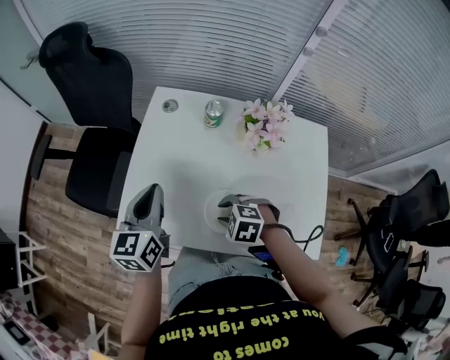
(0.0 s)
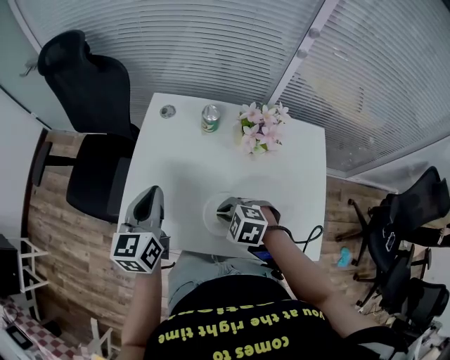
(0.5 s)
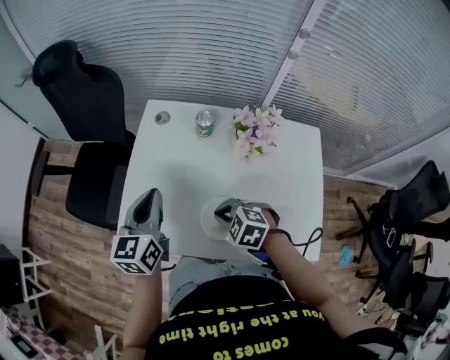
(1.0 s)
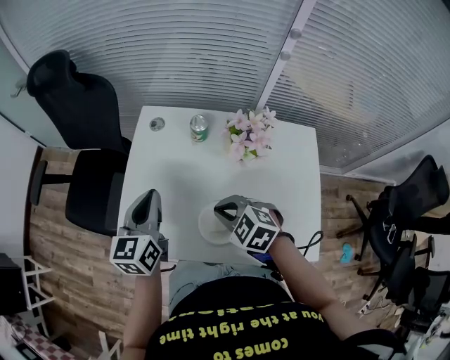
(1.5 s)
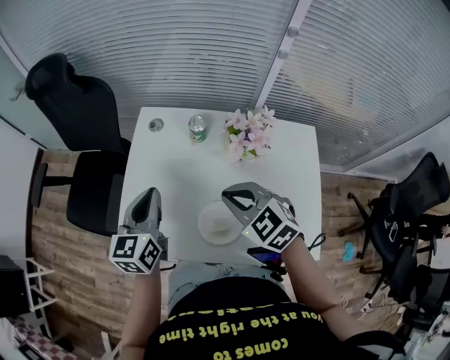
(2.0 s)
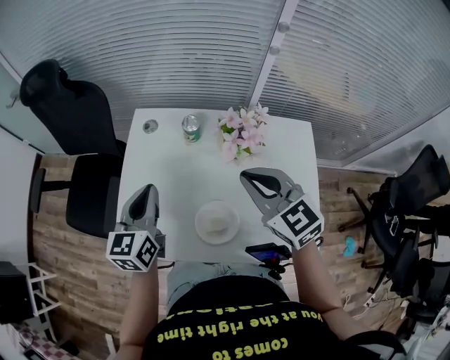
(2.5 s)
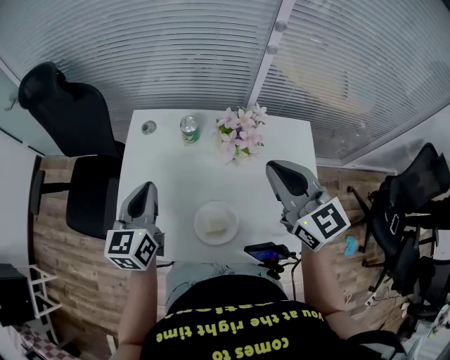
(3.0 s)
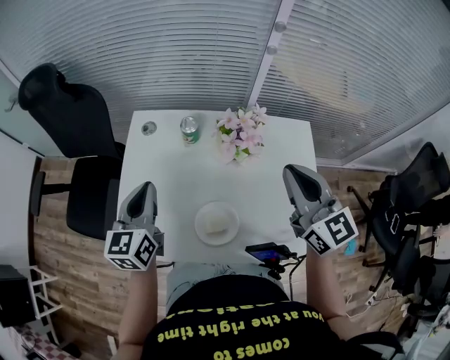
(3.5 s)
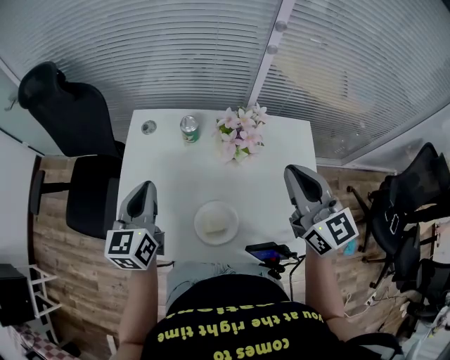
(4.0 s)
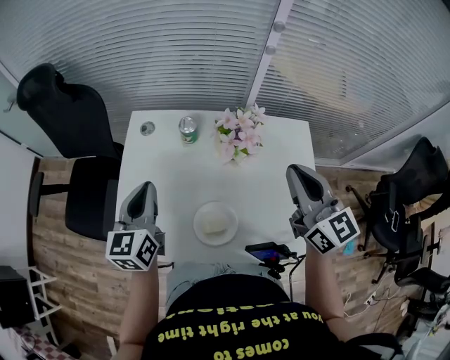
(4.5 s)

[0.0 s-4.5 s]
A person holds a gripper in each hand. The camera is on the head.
0.0 to 2.0 s: The left gripper changes place by about 5 cm, while the right gripper goes some 15 cm upward, changes its angle by about 40 degrees, and closes up.
2.0 to 4.5 s: The right gripper goes some 20 cm to the right and upward, and tips its fingers upward by approximately 40 degrees.

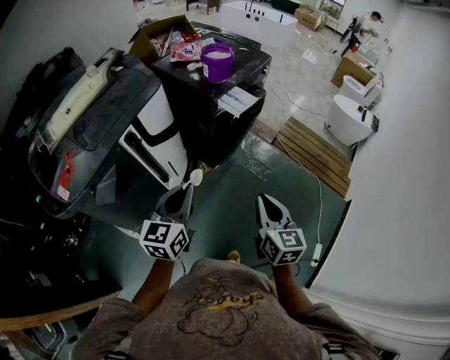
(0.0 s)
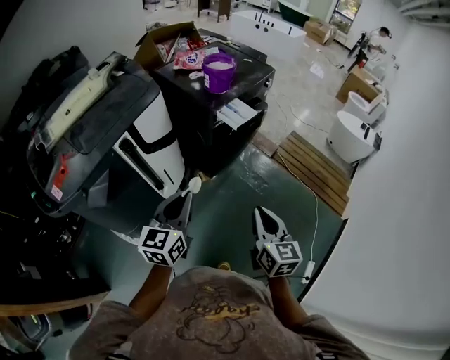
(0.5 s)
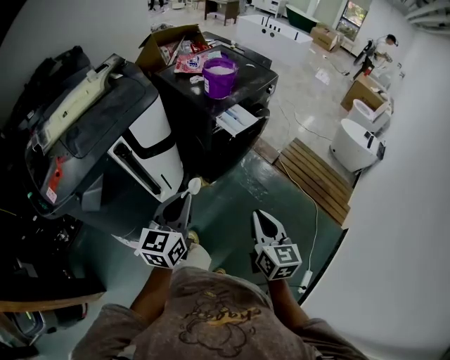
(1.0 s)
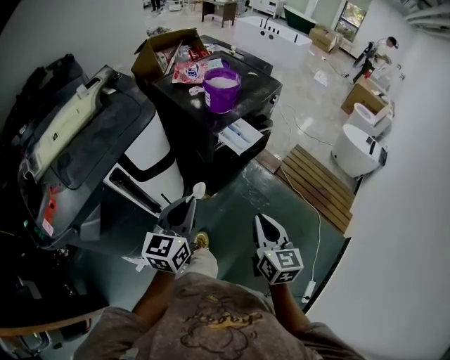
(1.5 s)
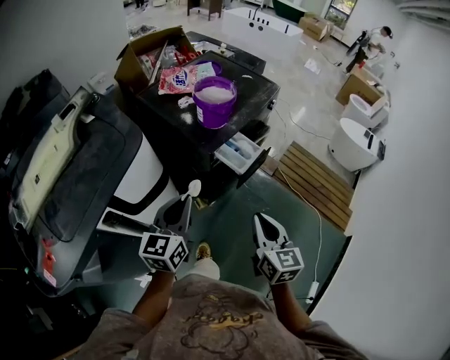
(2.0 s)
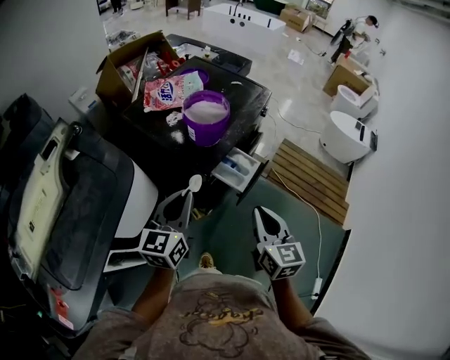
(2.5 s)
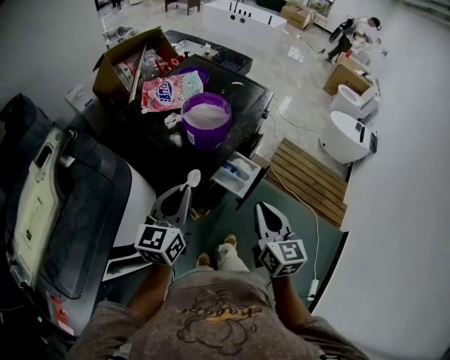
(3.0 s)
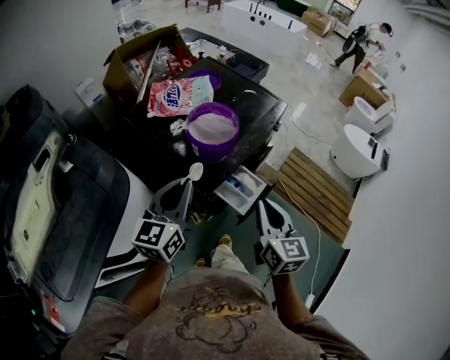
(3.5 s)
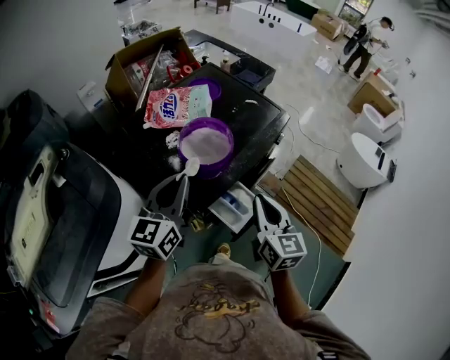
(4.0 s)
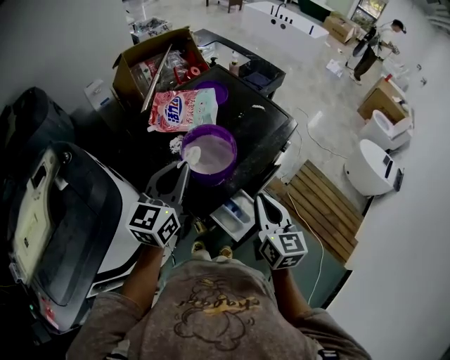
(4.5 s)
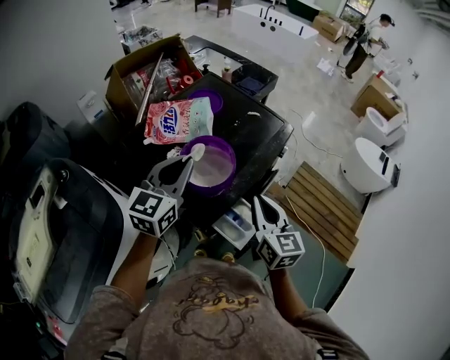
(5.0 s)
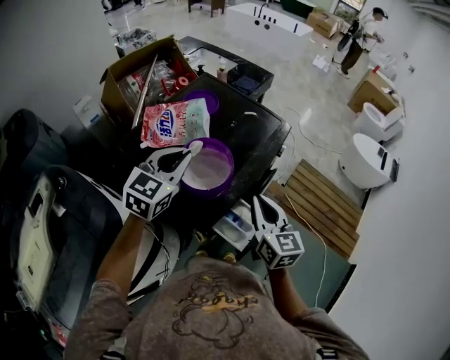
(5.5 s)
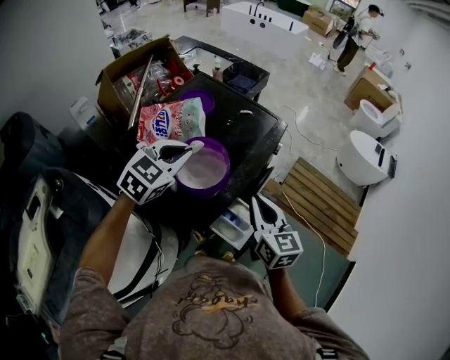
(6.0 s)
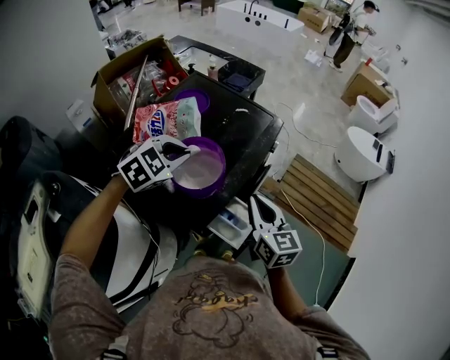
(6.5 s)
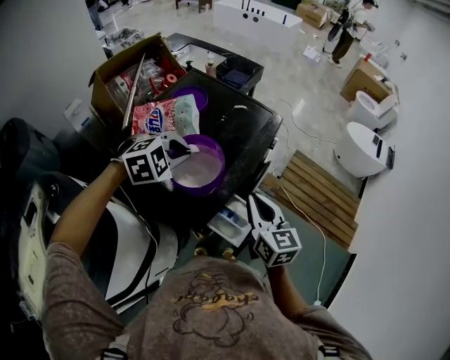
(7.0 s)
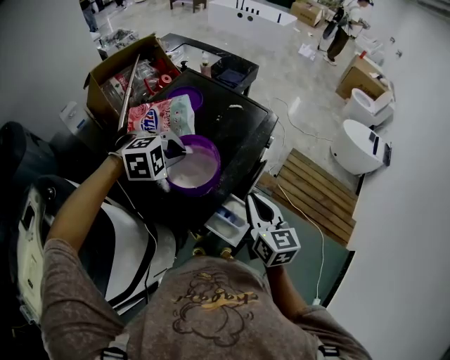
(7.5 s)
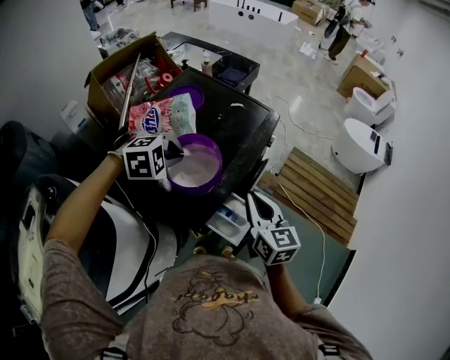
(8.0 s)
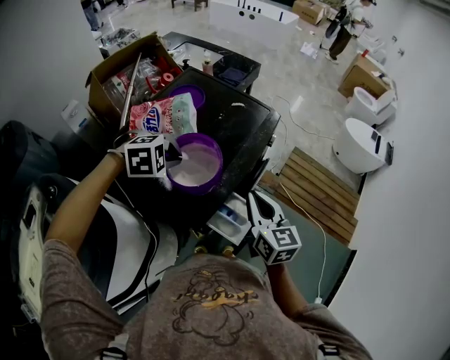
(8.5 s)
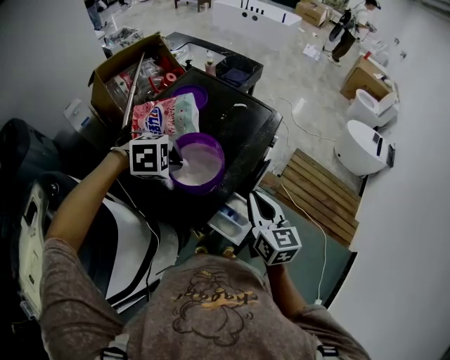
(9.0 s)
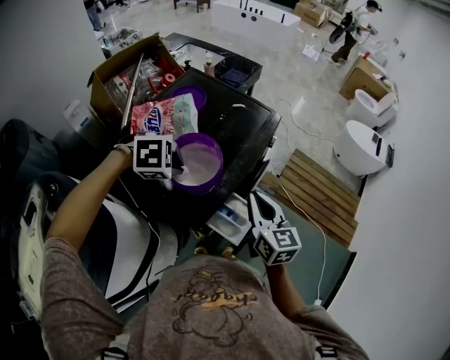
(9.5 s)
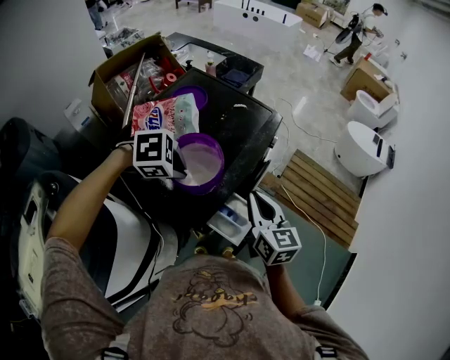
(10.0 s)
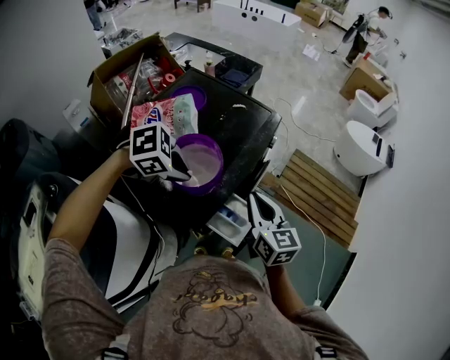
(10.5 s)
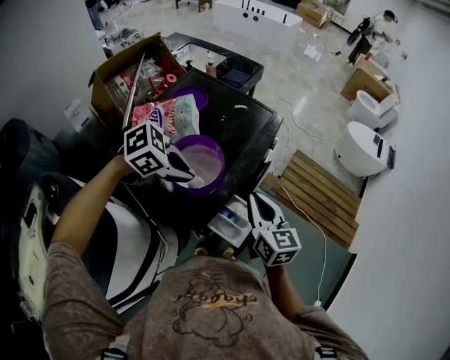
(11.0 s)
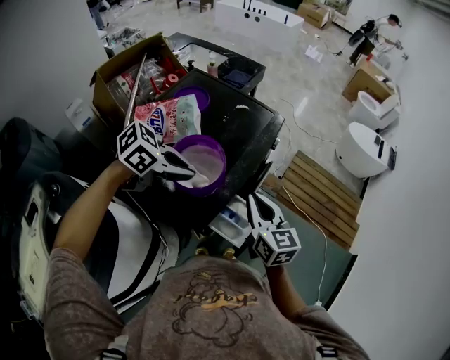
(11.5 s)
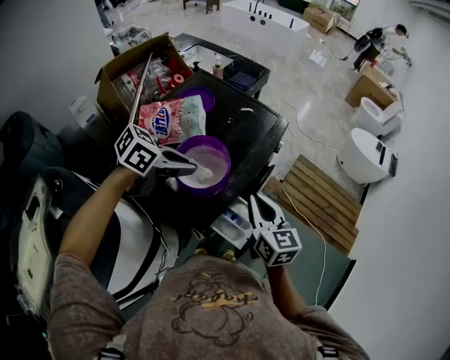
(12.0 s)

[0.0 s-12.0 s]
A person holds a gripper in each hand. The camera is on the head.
0.0 to 2.0 s: The two grippers go roughly 25 cm forward.
2.0 to 4.0 s: The two grippers go roughly 30 cm forward.
4.0 to 6.0 s: The left gripper heads forward, covering approximately 15 cm, and changes its angle by some 50 degrees. The right gripper is displaced forward by approximately 5 cm.
6.0 to 8.0 s: The left gripper heads downward, covering roughly 5 cm, and tilts its fingers approximately 30 degrees downward.
8.0 to 10.0 s: The left gripper shifts by about 5 cm, and swivels approximately 30 degrees.
10.0 to 12.0 s: The left gripper tips its fingers upward by some 40 degrees.

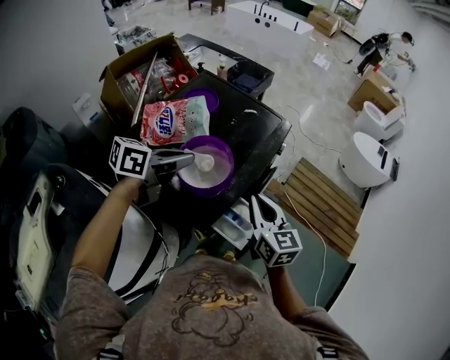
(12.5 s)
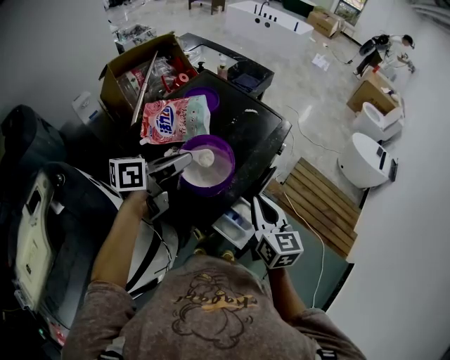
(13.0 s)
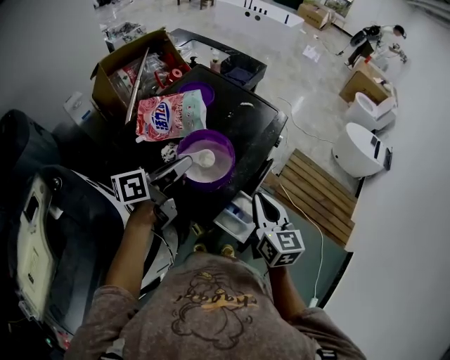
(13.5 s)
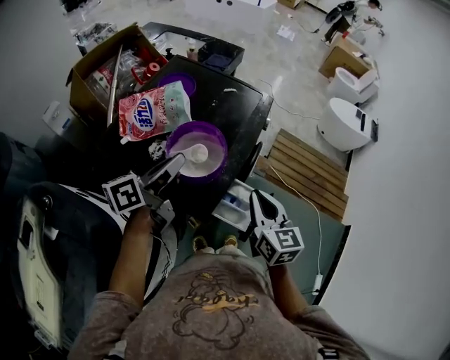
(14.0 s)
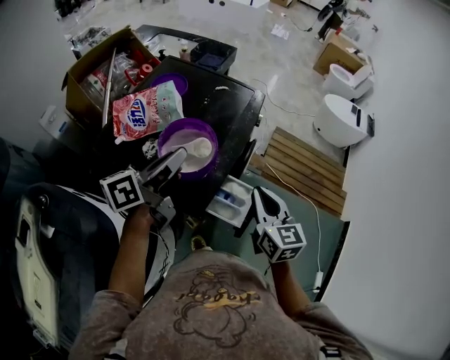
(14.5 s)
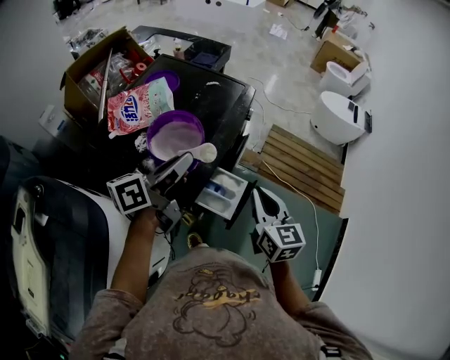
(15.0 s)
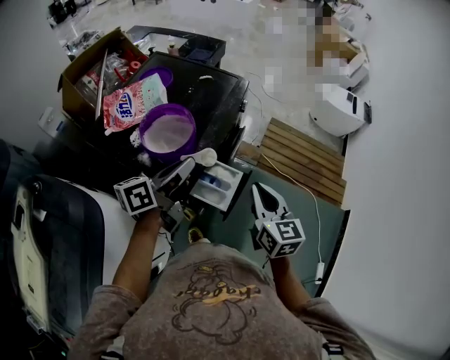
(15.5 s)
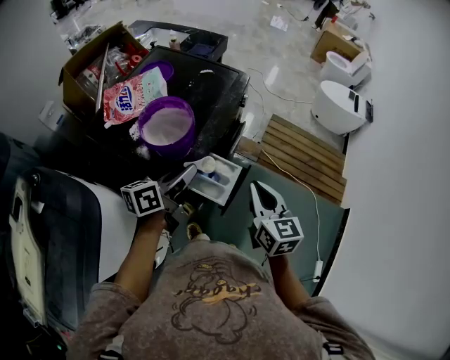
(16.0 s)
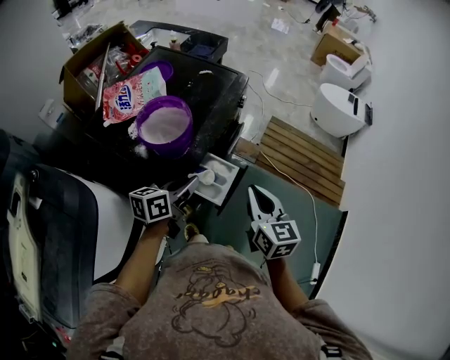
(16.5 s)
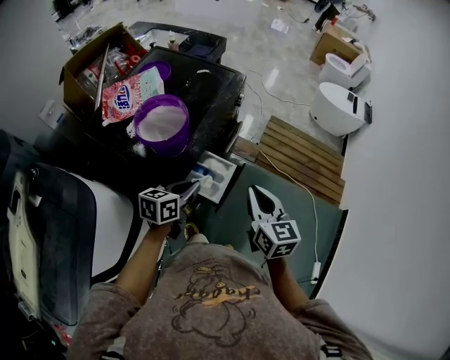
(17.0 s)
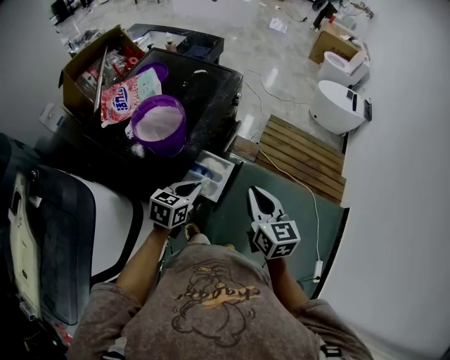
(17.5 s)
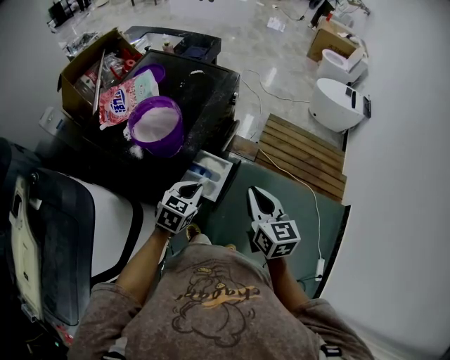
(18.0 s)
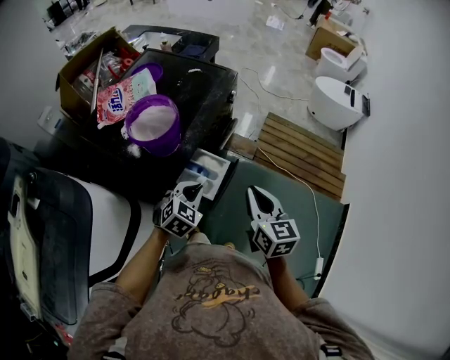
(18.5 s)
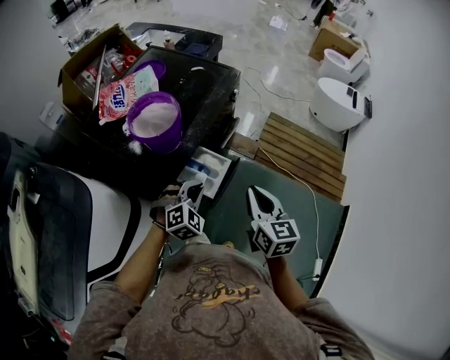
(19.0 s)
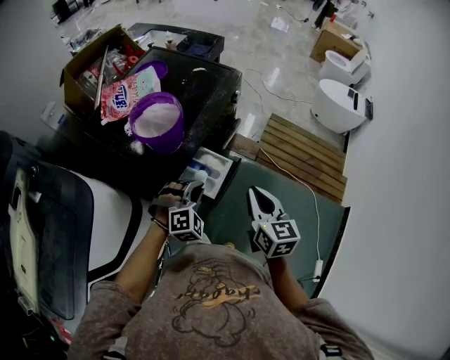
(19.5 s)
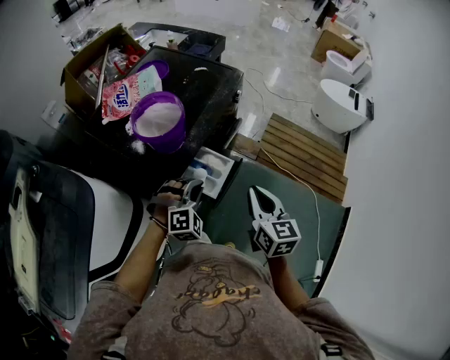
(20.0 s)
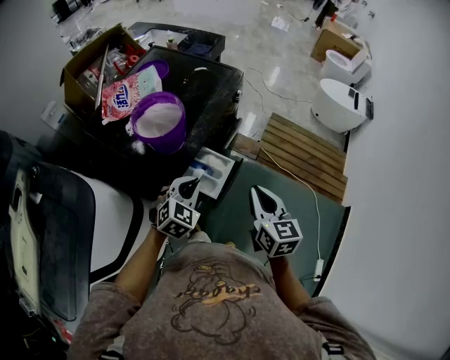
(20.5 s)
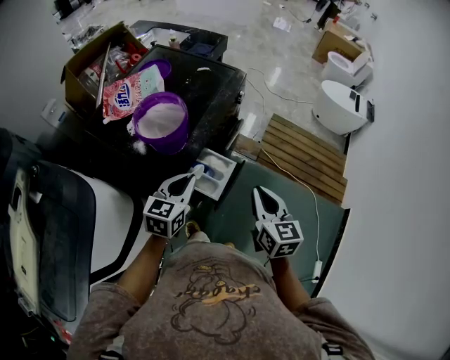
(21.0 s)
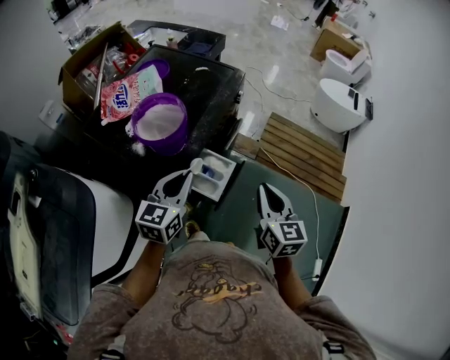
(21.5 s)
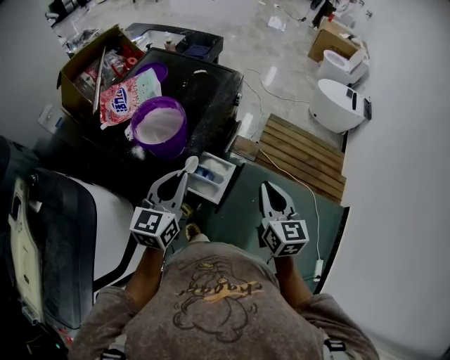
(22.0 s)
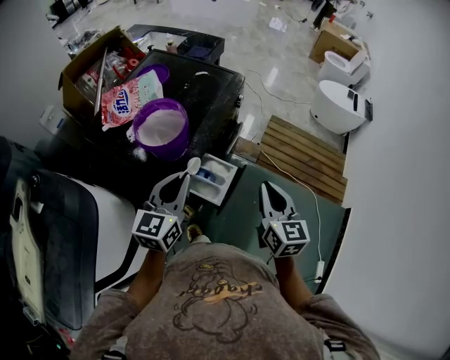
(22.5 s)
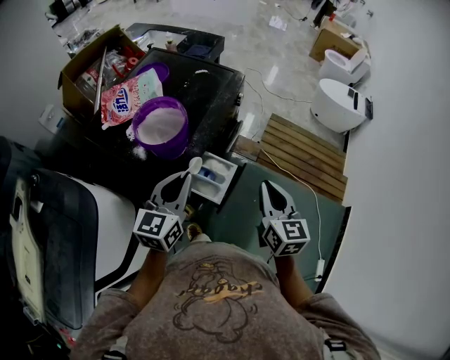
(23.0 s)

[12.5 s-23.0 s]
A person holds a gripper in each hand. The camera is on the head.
12.5 to 14.5 s: The right gripper shifts by some 5 cm. The left gripper moves about 5 cm, and swivels some 30 degrees.
14.5 to 16.5 s: The right gripper shifts roughly 10 cm to the right and backward. The left gripper goes some 20 cm downward, to the right and backward, and swivels some 20 degrees.
16.5 to 19.0 s: The right gripper changes place by approximately 5 cm; the left gripper travels to the right and downward by about 10 cm, and rolls clockwise, seen from behind, by roughly 80 degrees.
19.0 to 21.0 s: The left gripper goes approximately 10 cm upward and to the left, and twists roughly 50 degrees counterclockwise, seen from behind.
21.0 to 23.0 s: The left gripper travels upward by about 5 cm.
